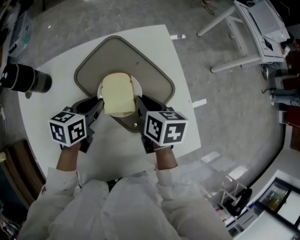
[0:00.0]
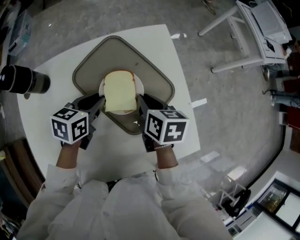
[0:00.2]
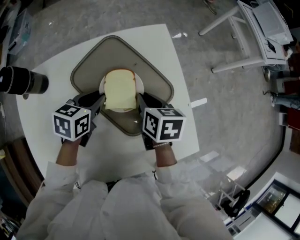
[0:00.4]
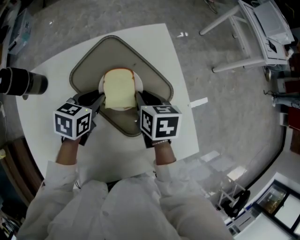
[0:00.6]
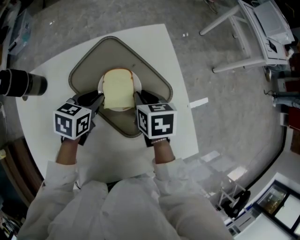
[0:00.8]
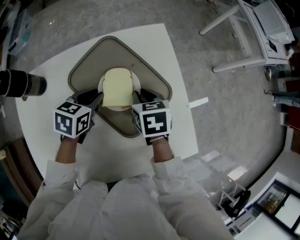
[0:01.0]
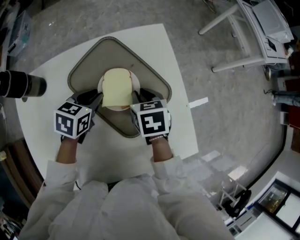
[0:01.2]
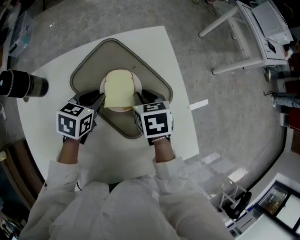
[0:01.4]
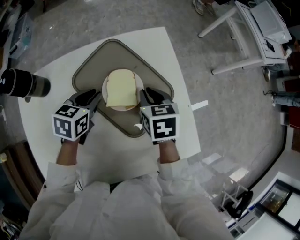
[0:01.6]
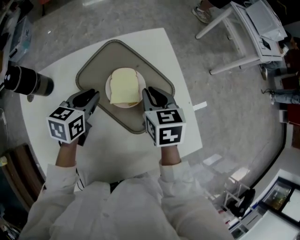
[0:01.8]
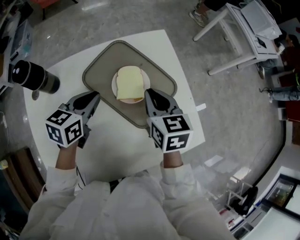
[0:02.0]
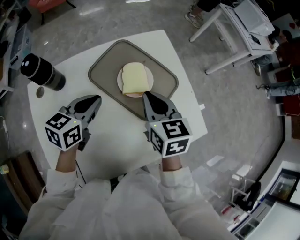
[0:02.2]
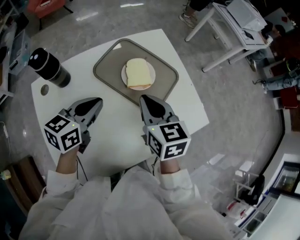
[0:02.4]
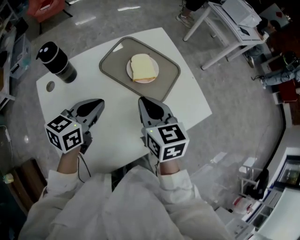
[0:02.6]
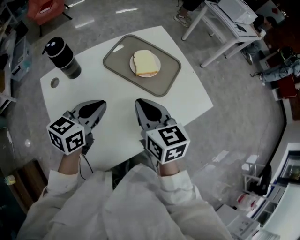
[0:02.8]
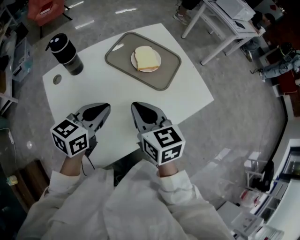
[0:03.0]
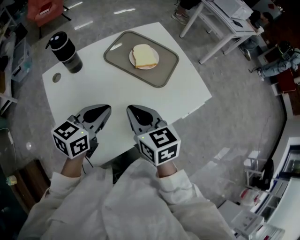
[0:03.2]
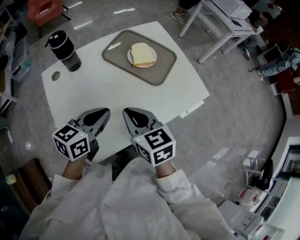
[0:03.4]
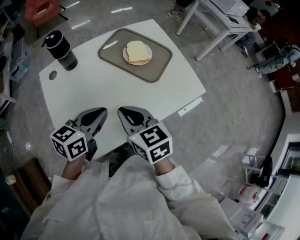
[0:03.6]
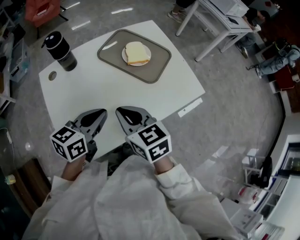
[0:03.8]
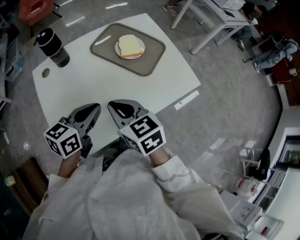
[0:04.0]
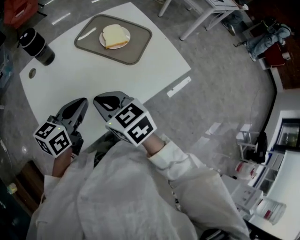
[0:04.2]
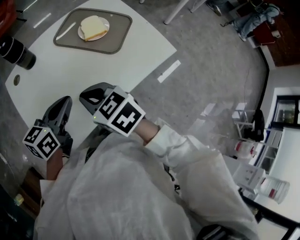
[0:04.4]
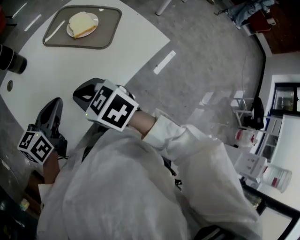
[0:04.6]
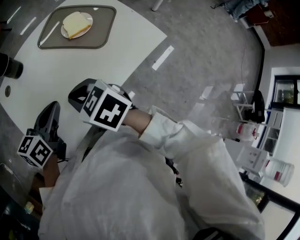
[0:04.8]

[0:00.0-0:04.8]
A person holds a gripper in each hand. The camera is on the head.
0:00.0 to 0:01.6: The right gripper turns by some 20 degrees.
0:01.6 to 0:03.2: The left gripper travels backward and upward by roughly 35 cm, and rotates roughly 30 degrees, while the right gripper goes some 35 cm backward, and swivels roughly 20 degrees.
0:03.2 to 0:04.8: The right gripper ends up about 5 cm from where it was, and rotates some 30 degrees.

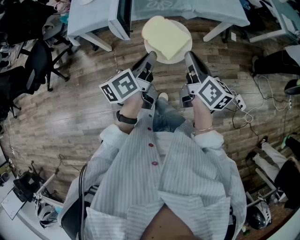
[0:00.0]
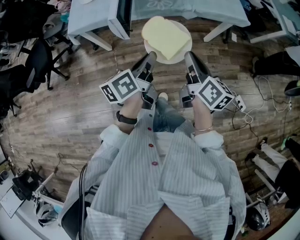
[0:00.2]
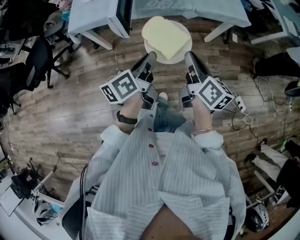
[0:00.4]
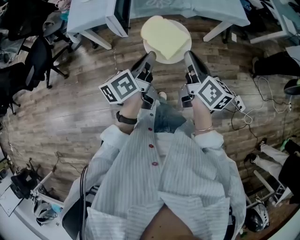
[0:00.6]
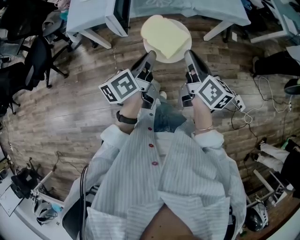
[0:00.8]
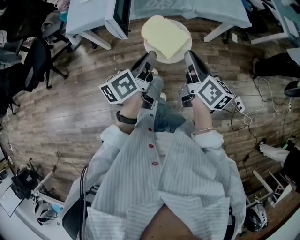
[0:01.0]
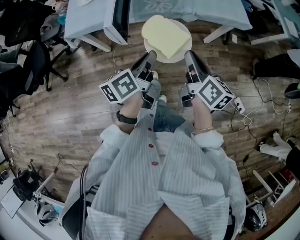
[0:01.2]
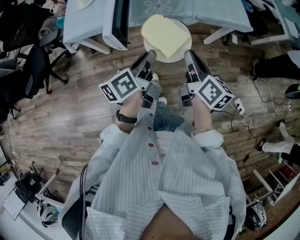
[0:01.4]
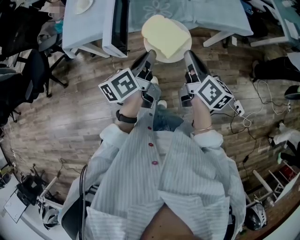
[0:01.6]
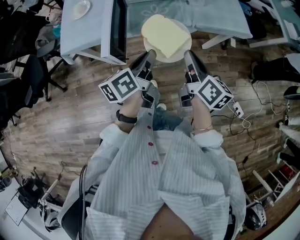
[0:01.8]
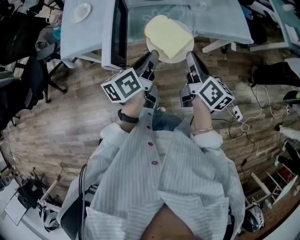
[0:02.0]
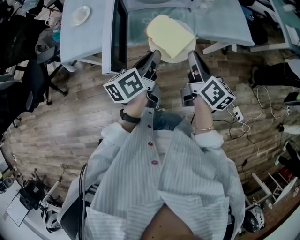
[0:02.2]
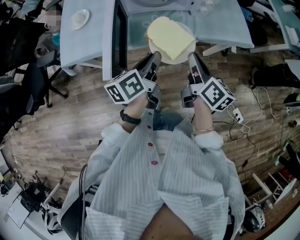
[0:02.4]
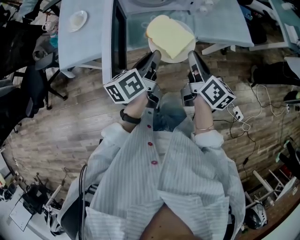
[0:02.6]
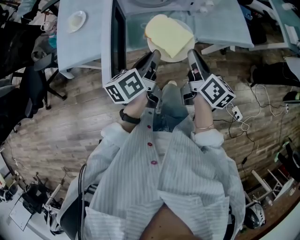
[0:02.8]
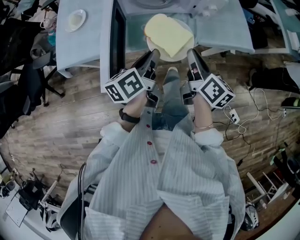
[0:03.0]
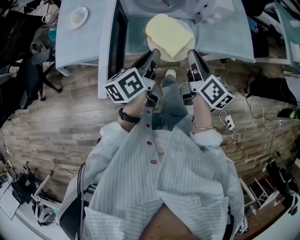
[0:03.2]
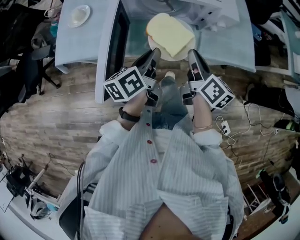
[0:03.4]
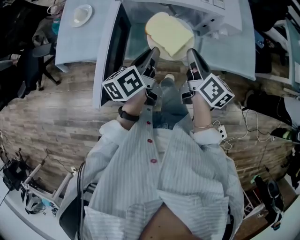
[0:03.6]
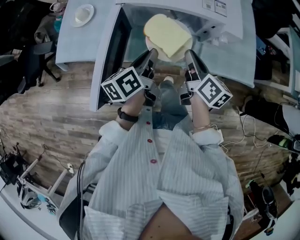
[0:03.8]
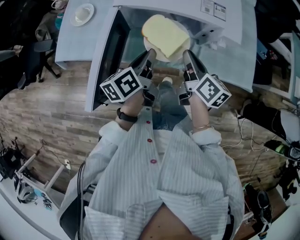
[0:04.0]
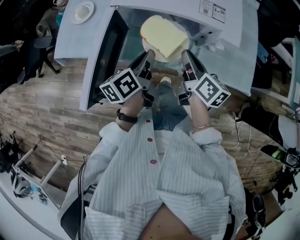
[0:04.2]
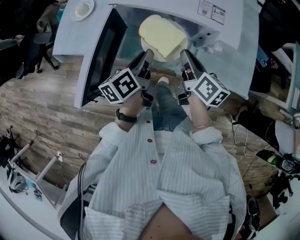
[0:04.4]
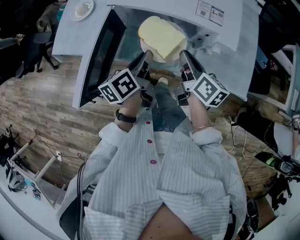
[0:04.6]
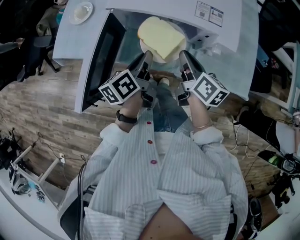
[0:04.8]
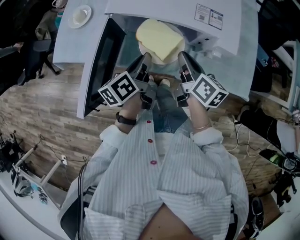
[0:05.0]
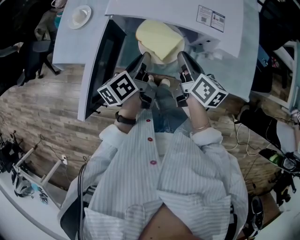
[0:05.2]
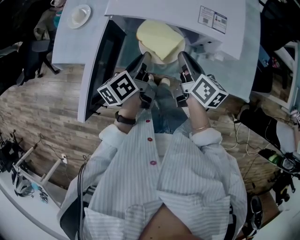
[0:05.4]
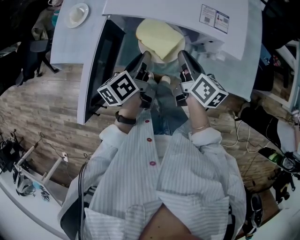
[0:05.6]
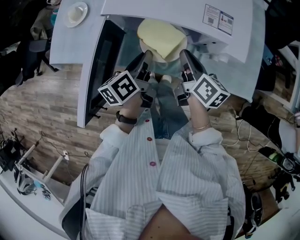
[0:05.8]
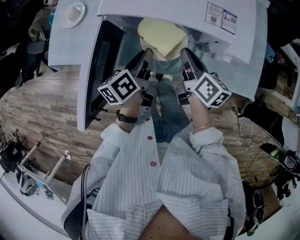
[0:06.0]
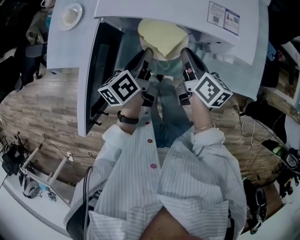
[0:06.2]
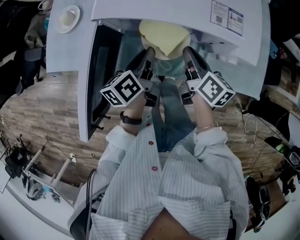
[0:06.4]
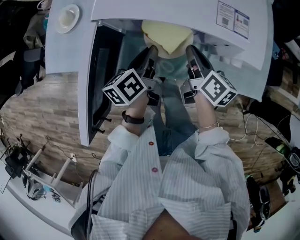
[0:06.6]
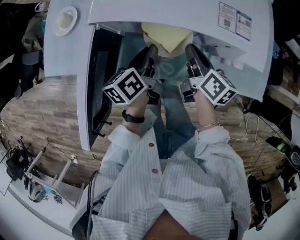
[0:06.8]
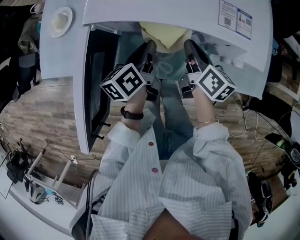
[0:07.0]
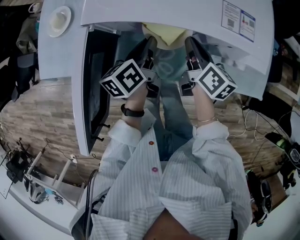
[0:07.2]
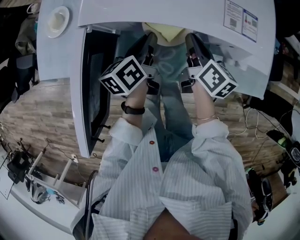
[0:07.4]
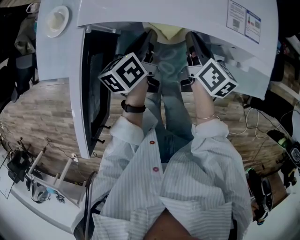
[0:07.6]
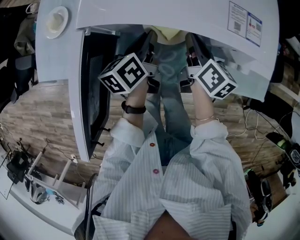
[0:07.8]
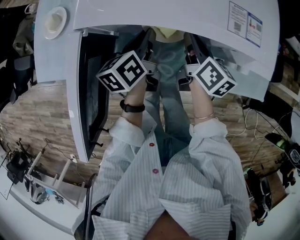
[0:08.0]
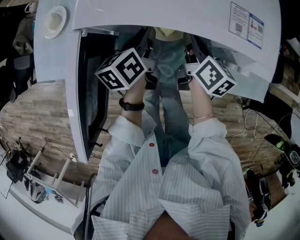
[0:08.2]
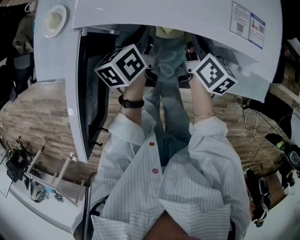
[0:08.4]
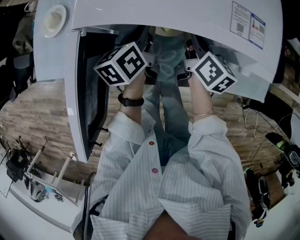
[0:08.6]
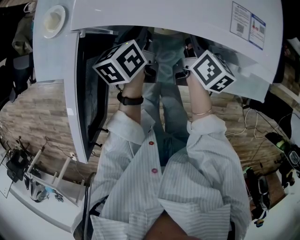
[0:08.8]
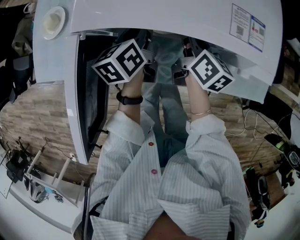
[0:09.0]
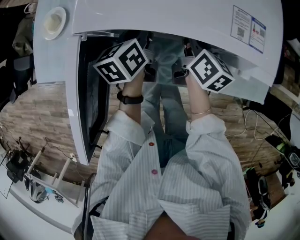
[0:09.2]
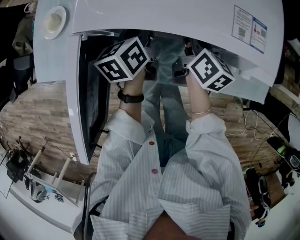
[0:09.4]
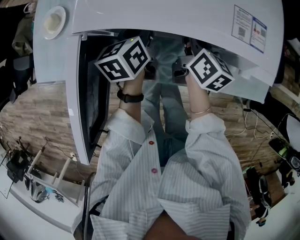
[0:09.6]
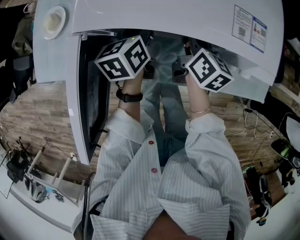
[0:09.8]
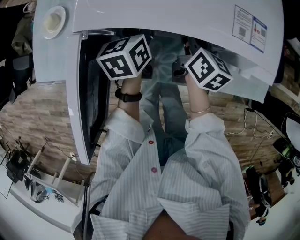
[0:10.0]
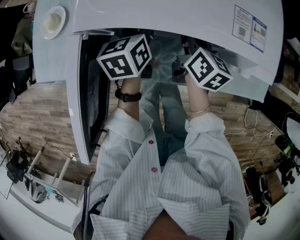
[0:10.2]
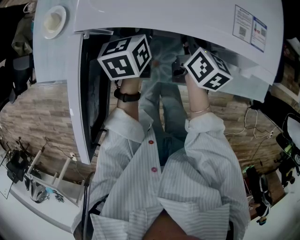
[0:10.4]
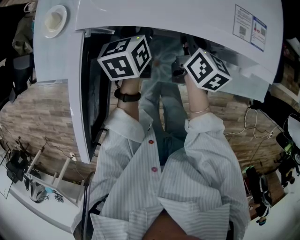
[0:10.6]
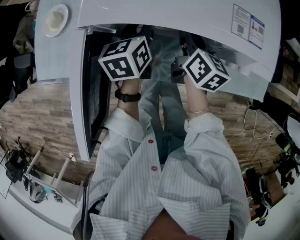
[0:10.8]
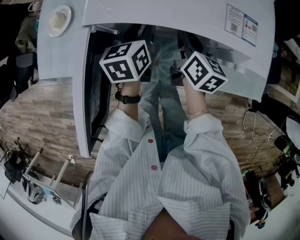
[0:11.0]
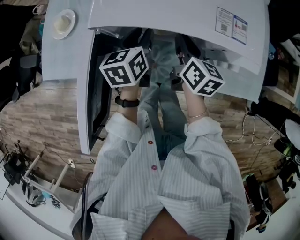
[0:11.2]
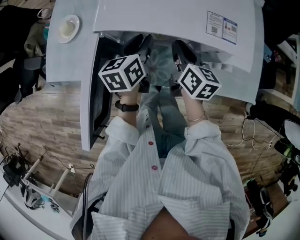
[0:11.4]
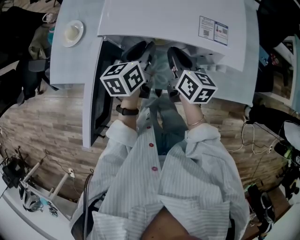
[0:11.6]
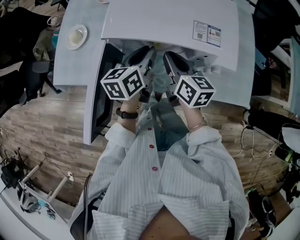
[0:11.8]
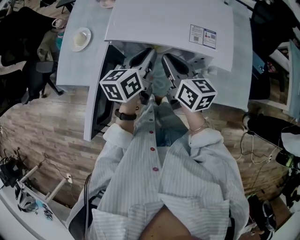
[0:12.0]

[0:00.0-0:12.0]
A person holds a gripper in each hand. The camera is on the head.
0:00.0 to 0:01.6: The two grippers go about 10 cm forward.
0:01.6 to 0:03.0: The two grippers go approximately 15 cm forward.
0:03.0 to 0:04.4: The grippers both shift forward by about 15 cm. The left gripper swivels about 20 degrees. The right gripper turns by some 20 degrees.
0:04.4 to 0:06.0: The right gripper moves roughly 5 cm. Meanwhile the left gripper shifts about 5 cm forward.
0:06.0 to 0:07.6: The grippers both shift forward and downward by about 10 cm.
0:07.6 to 0:09.0: There are only small adjustments of the grippers.
0:09.0 to 0:10.4: The grippers stay close to where they were, moving slightly.
0:10.4 to 0:12.0: The two grippers go approximately 15 cm upward and backward. The right gripper turns by roughly 20 degrees.

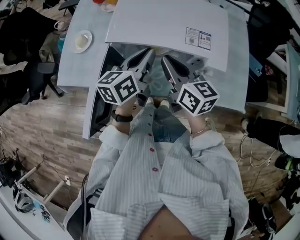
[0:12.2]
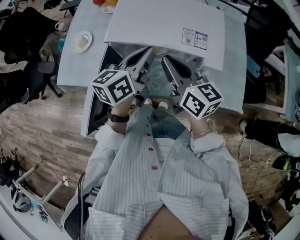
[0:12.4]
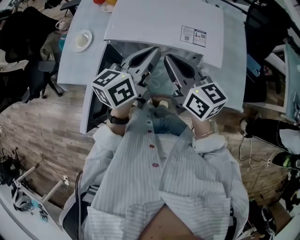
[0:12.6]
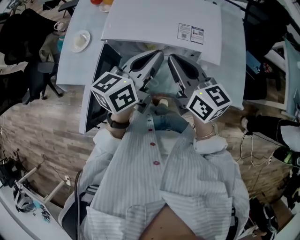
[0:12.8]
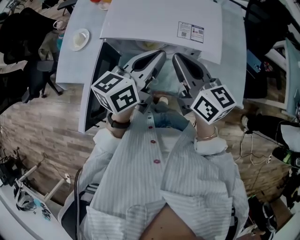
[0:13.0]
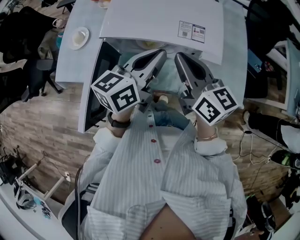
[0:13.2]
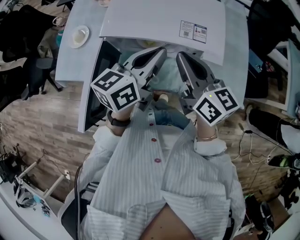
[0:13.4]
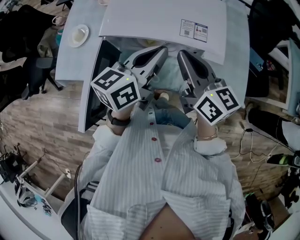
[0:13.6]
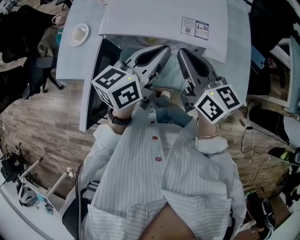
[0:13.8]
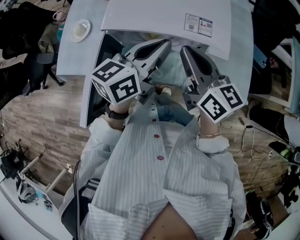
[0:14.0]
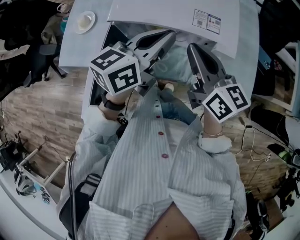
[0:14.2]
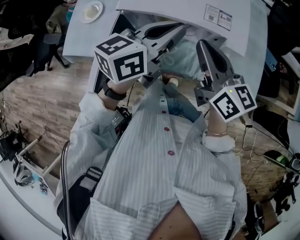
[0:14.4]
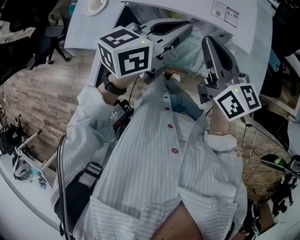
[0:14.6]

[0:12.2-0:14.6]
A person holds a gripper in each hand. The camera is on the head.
0:12.2 to 0:13.4: The two grippers go some 10 cm upward and to the right.
0:13.4 to 0:14.6: The grippers move only a little.

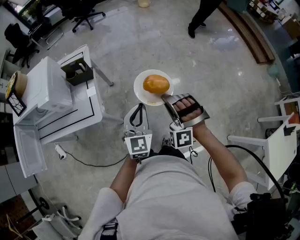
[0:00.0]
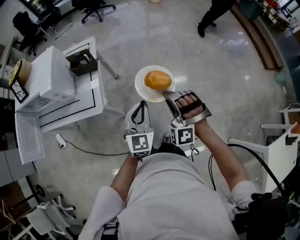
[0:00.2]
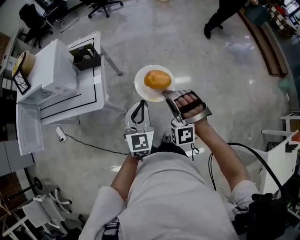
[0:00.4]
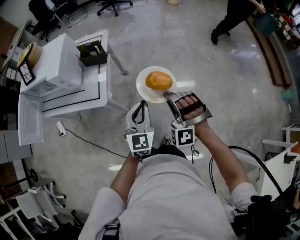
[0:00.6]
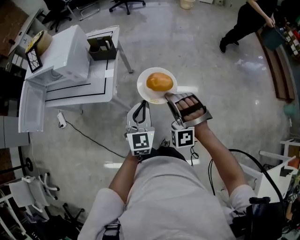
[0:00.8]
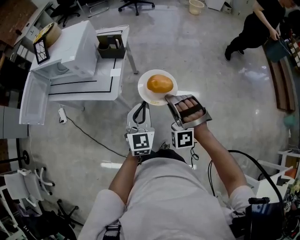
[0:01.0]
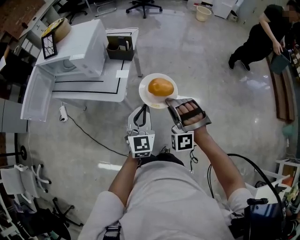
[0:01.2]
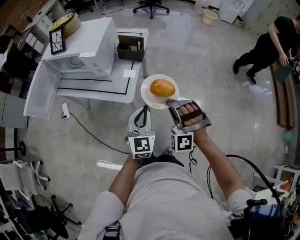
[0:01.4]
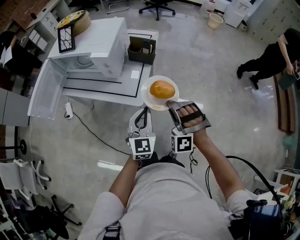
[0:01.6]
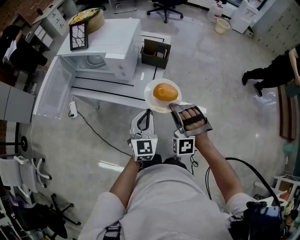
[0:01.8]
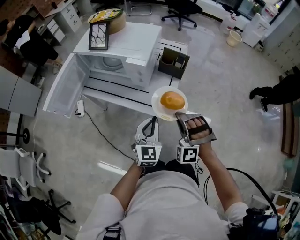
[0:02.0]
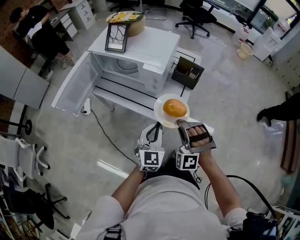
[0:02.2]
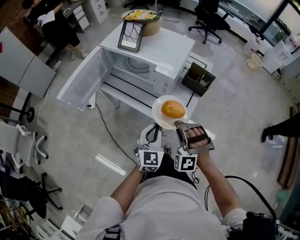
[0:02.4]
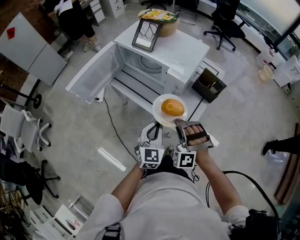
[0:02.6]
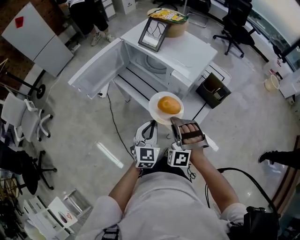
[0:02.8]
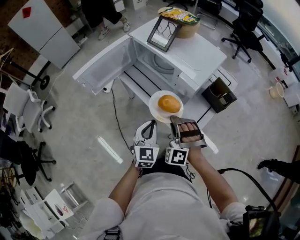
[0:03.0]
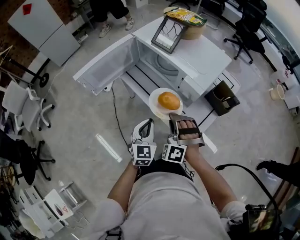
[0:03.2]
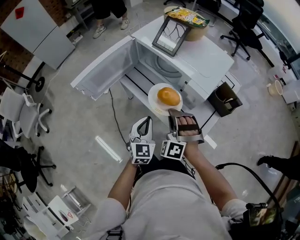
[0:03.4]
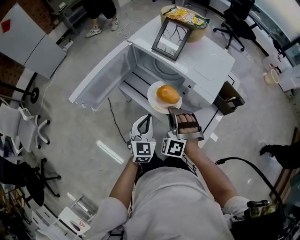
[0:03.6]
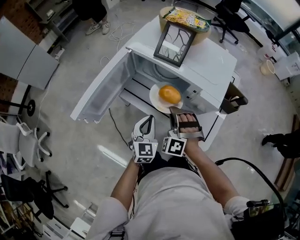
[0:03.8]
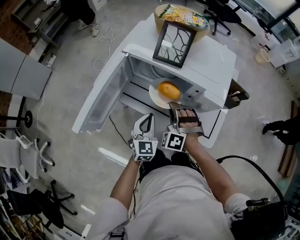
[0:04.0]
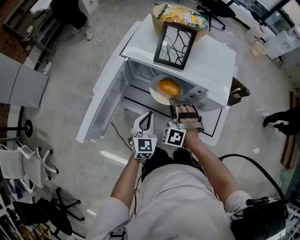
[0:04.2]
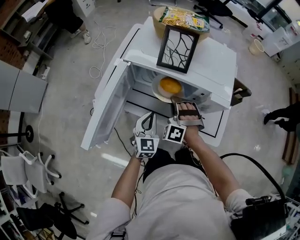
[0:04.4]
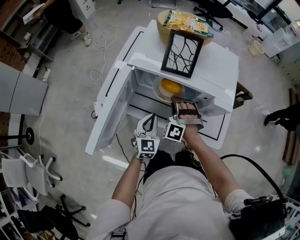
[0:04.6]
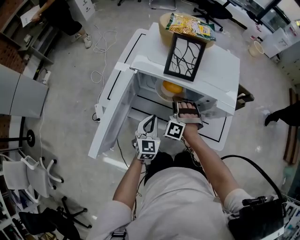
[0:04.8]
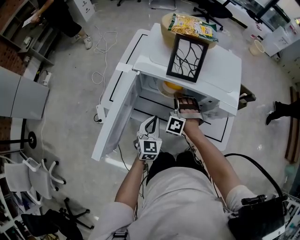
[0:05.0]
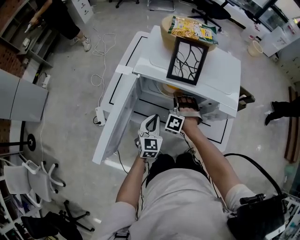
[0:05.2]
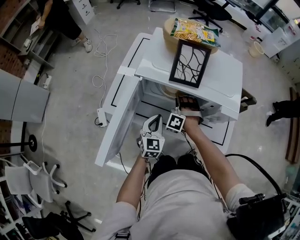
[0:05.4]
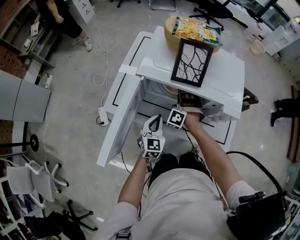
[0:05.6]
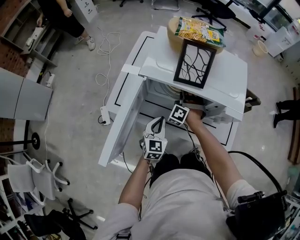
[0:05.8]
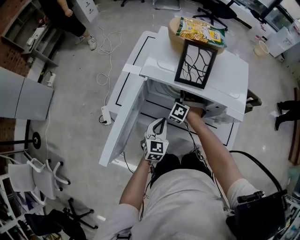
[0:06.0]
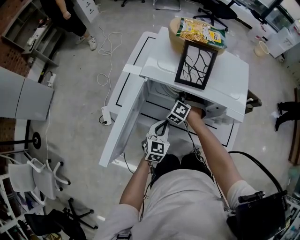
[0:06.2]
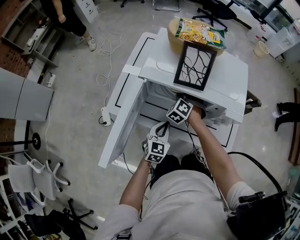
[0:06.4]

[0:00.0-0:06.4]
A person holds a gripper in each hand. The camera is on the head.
0:00.0 to 0:01.6: The left gripper ends up about 20 cm from where it was, and changes its angle by approximately 20 degrees.
0:01.6 to 0:03.2: The left gripper changes place by about 30 cm, and rotates roughly 30 degrees.
0:03.2 to 0:04.8: The left gripper shifts by approximately 25 cm, and changes its angle by approximately 30 degrees.
